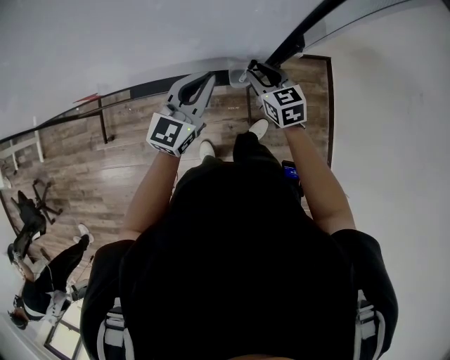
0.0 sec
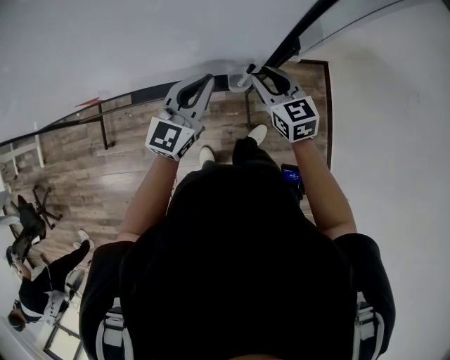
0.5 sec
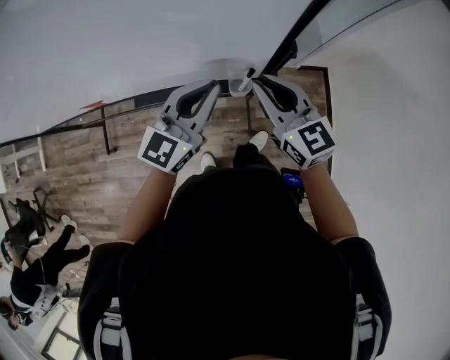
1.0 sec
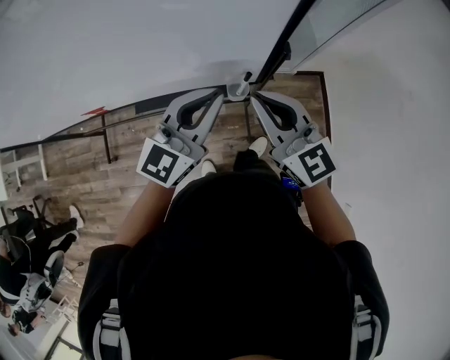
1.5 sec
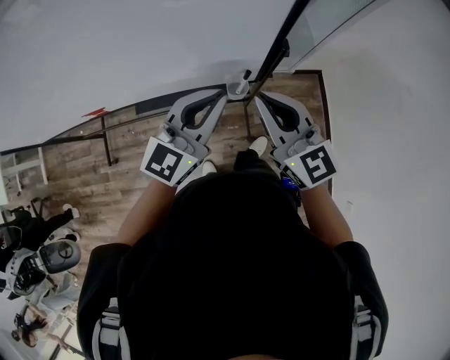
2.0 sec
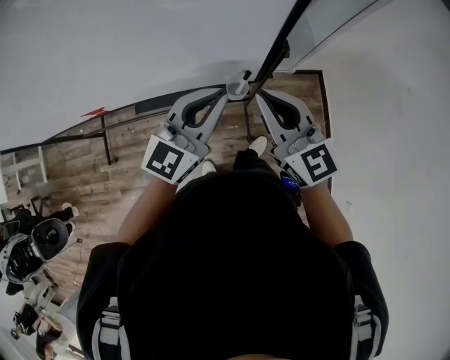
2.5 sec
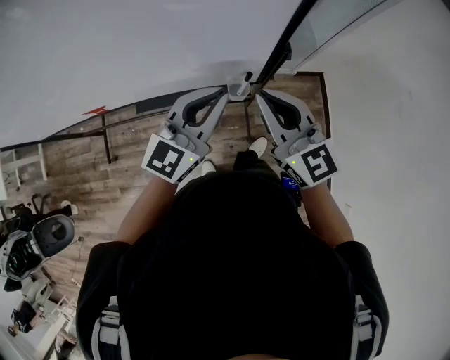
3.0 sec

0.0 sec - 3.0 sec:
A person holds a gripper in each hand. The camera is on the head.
0.0 sec - 1.5 sec: The right gripper travels upward and backward by some 25 cm, changes its angle by roughly 30 degrees, and closes up; the left gripper moves upward and backward, some 15 cm.
1.5 sec - 3.0 sec: The two grippers keep their place.

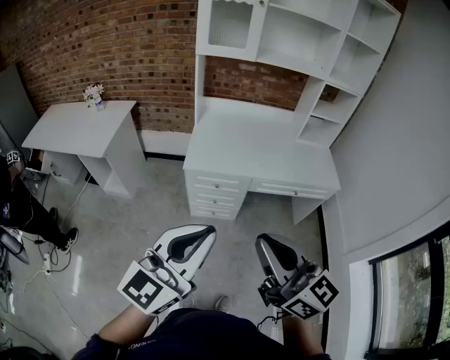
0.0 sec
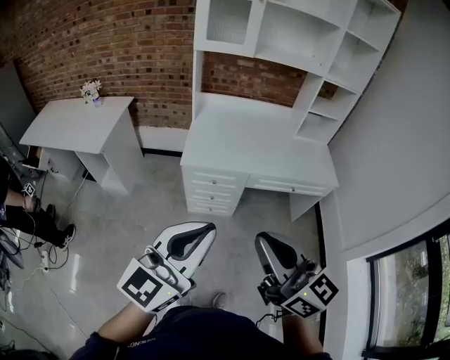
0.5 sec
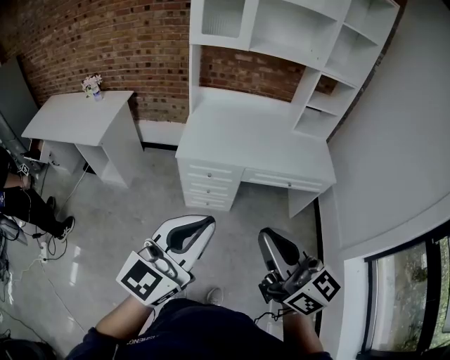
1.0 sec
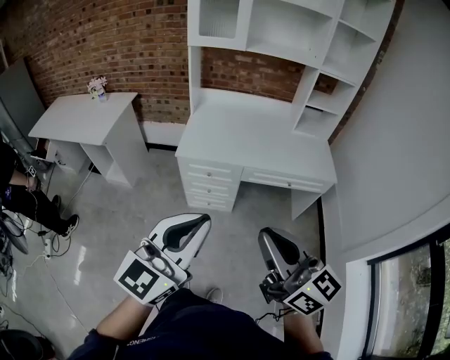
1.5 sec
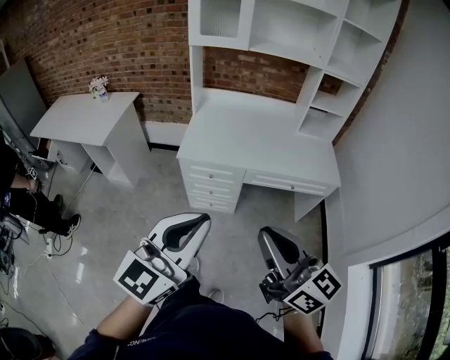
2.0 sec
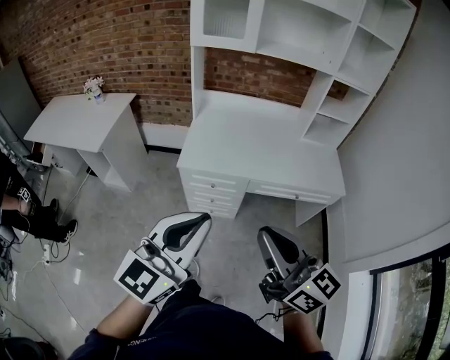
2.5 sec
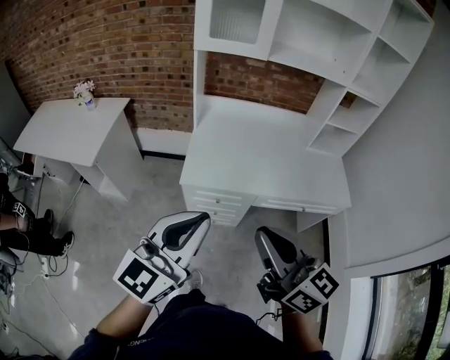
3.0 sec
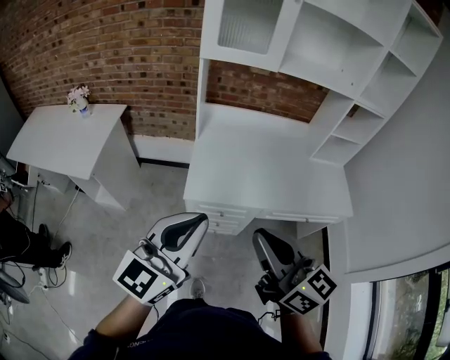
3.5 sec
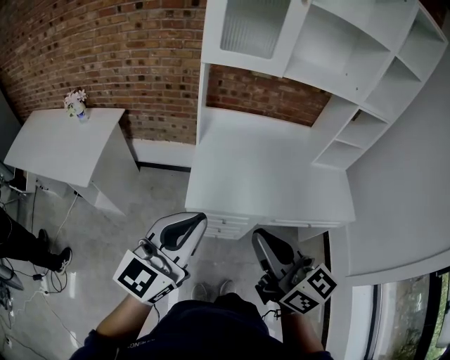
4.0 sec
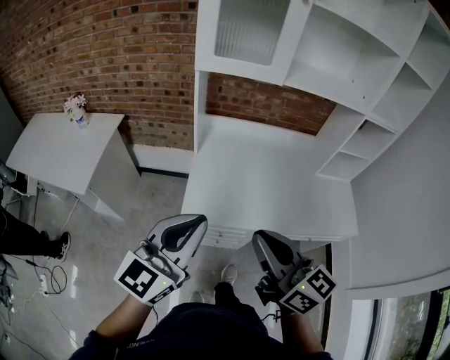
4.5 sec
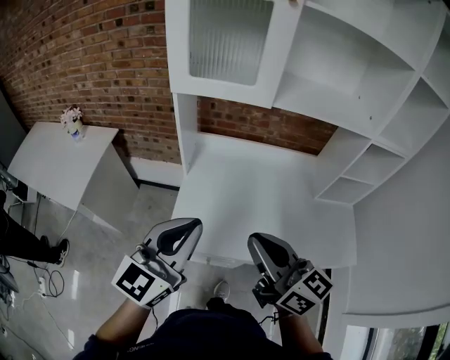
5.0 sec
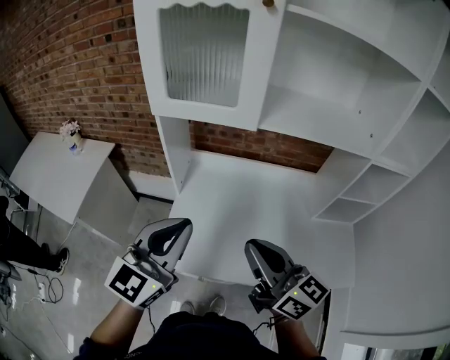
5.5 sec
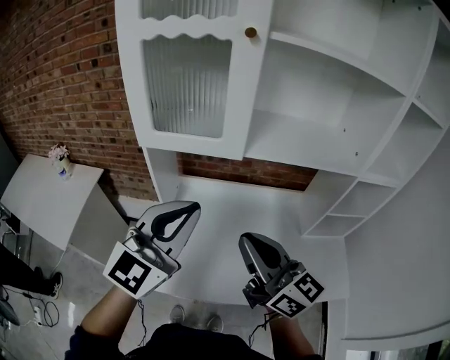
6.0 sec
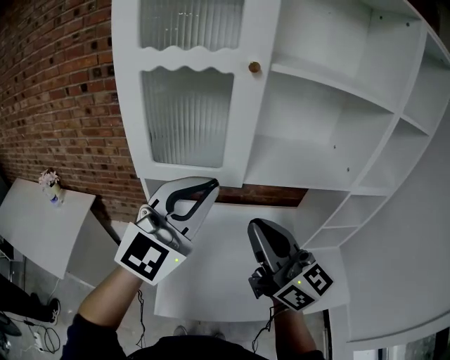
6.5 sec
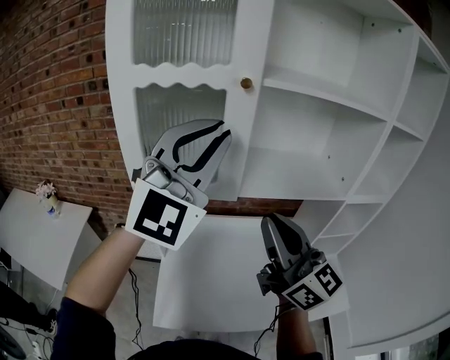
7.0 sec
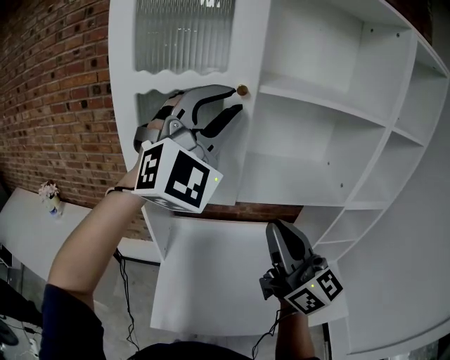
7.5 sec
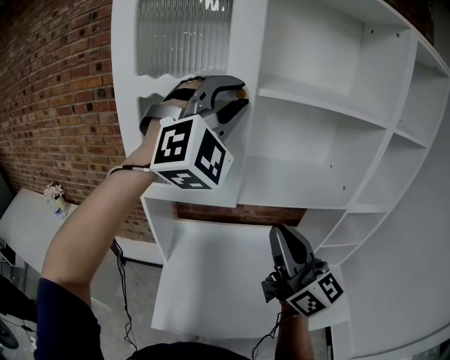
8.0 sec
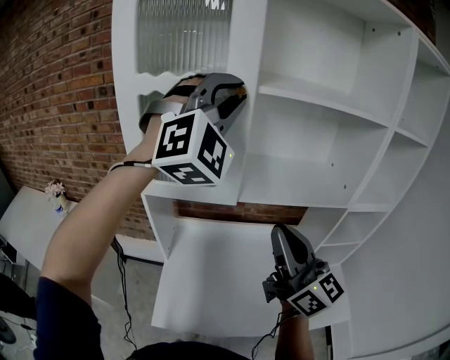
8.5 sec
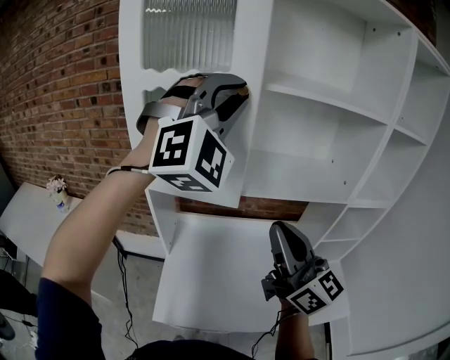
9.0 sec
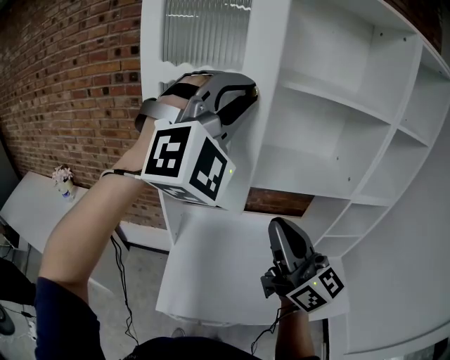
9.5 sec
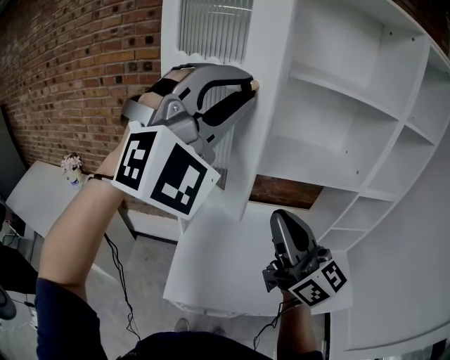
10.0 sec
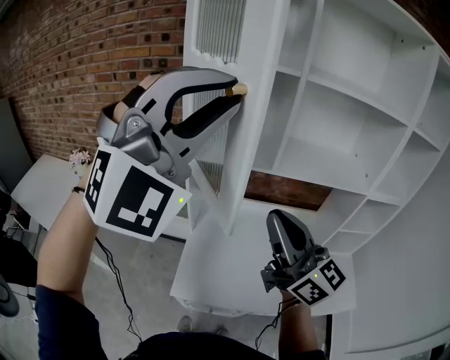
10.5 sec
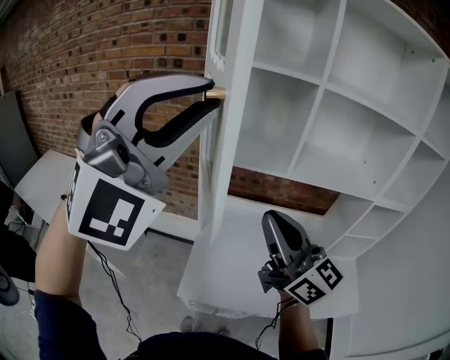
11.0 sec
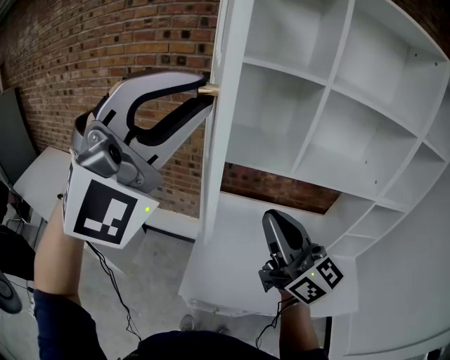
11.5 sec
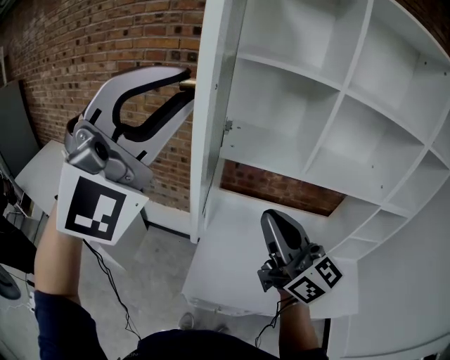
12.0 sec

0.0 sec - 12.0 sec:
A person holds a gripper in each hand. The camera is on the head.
0.0 sec - 2.0 sec: The two grippers go approximately 10 cm to the right.
2.0 sec - 4.0 sec: Both grippers move forward and to the left, about 35 cm.
4.0 sec - 6.0 sec: The two grippers go approximately 35 cm forward and to the right.
6.0 sec - 8.0 sec: The left gripper is displaced upward and forward by some 30 cm, rotates around the line of its fingers by about 60 degrees, clockwise from behind, and opens up; the right gripper is displaced upward, forward and to the right by roughly 15 cm.
8.0 sec - 10.0 sec: The left gripper travels backward and to the left by some 15 cm. Meanwhile the right gripper moves to the left and backward, some 10 cm.
10.0 sec - 12.0 sec: The left gripper moves to the left, some 20 cm; the right gripper shifts about 15 cm to the left.

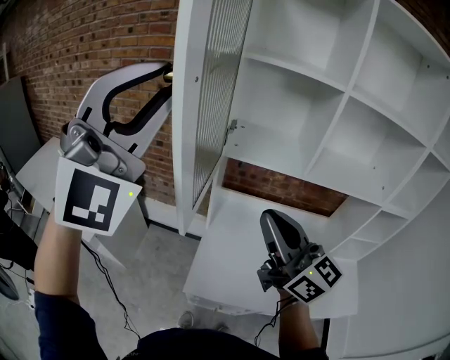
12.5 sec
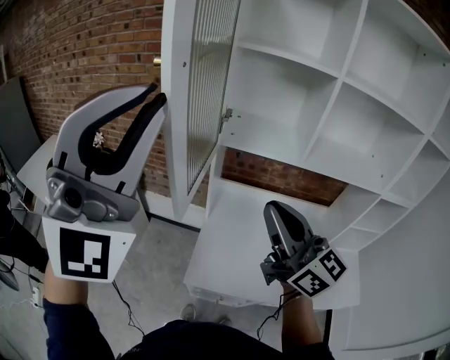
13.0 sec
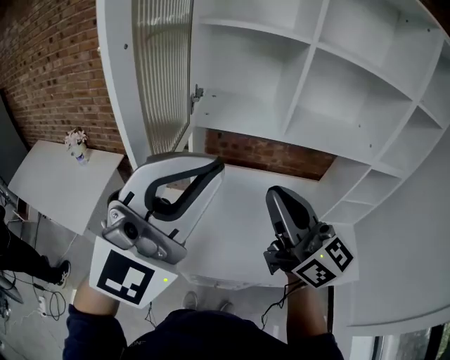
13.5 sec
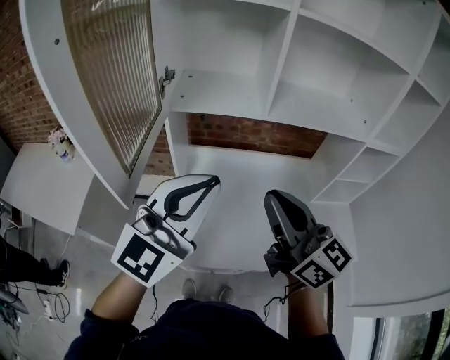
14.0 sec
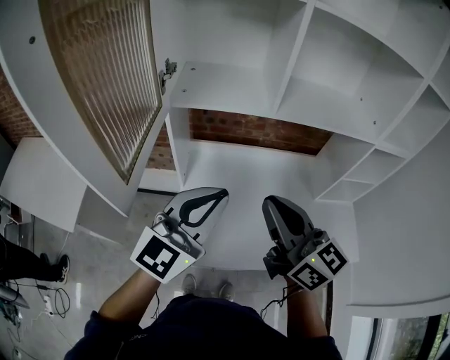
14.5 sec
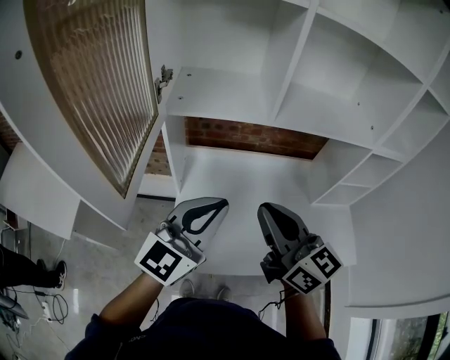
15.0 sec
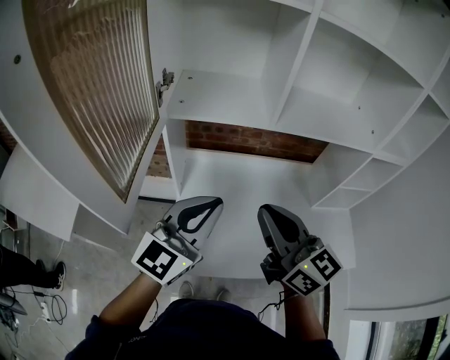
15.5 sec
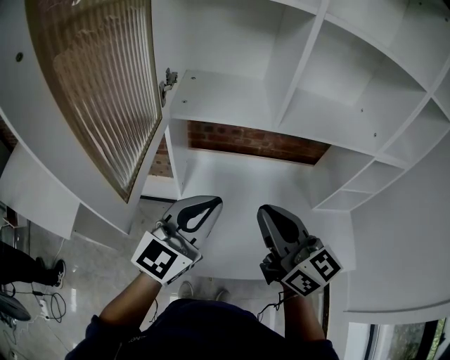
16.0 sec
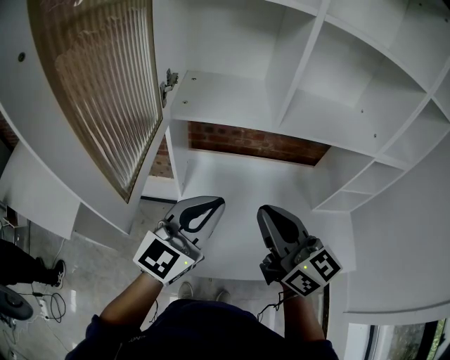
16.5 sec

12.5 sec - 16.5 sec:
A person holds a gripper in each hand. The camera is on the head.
12.5 sec - 14.5 sec: The right gripper goes about 15 cm to the right and downward. Meanwhile the left gripper is displaced downward and to the right by some 35 cm, and rolls counterclockwise, seen from behind, by some 70 degrees.
14.5 sec - 16.5 sec: The grippers move only a little.

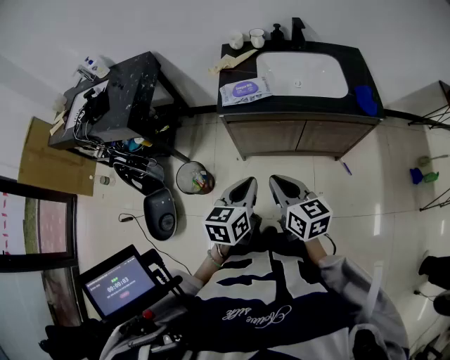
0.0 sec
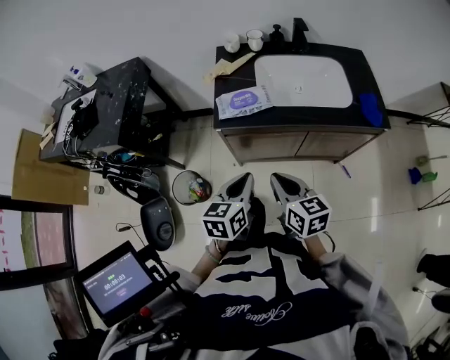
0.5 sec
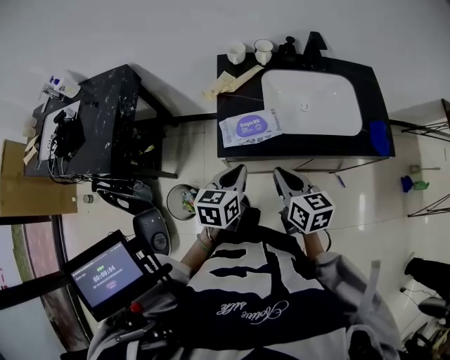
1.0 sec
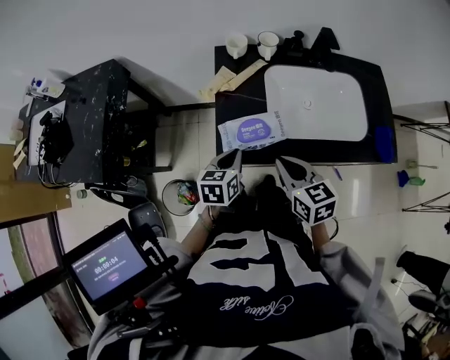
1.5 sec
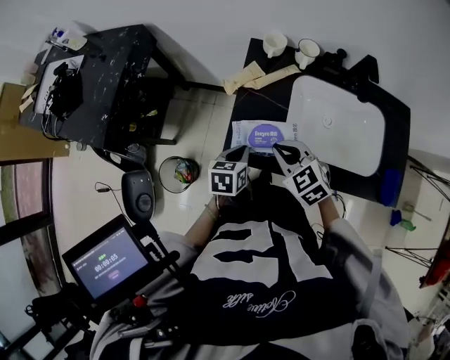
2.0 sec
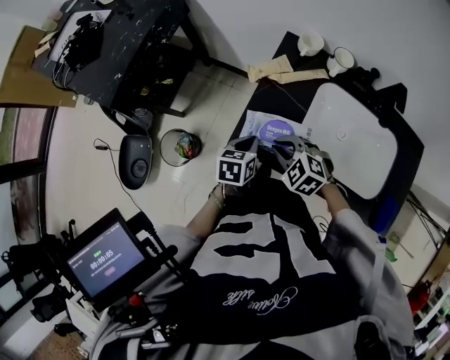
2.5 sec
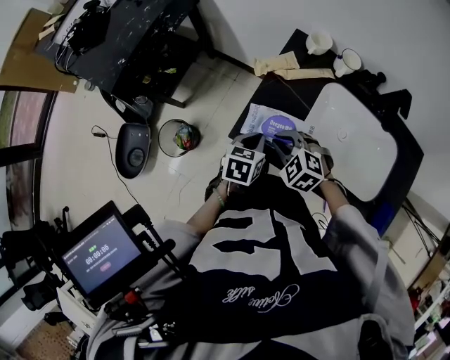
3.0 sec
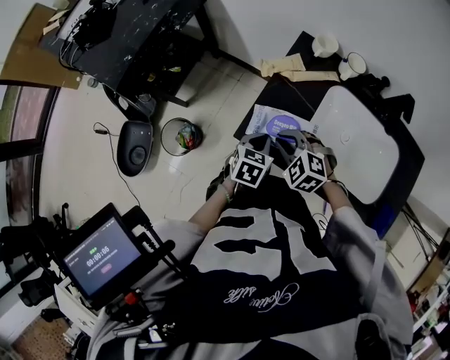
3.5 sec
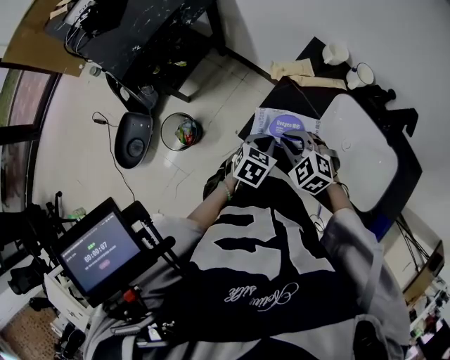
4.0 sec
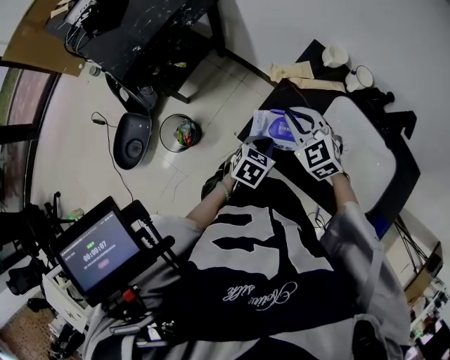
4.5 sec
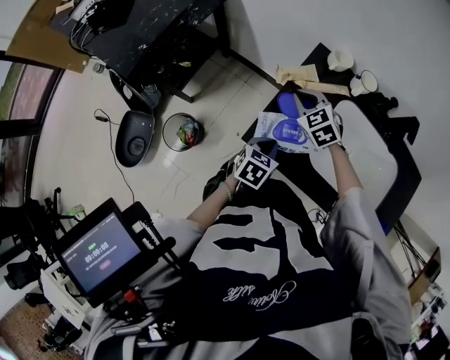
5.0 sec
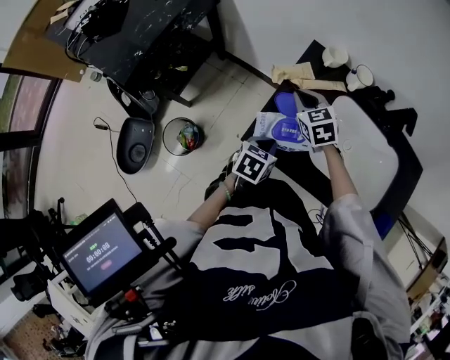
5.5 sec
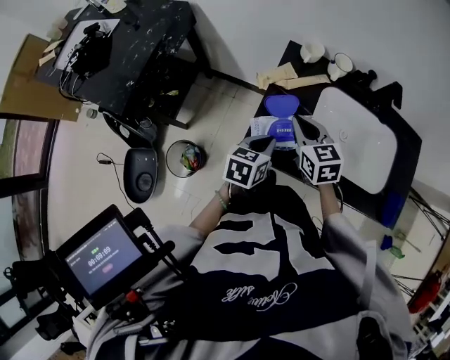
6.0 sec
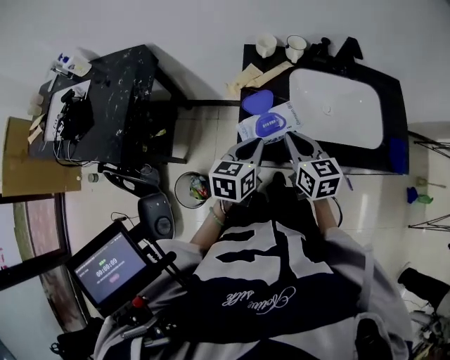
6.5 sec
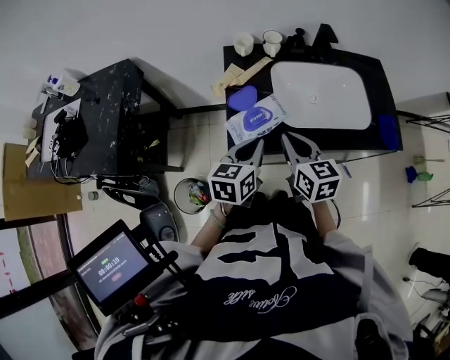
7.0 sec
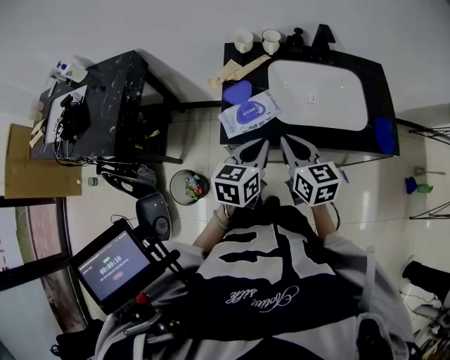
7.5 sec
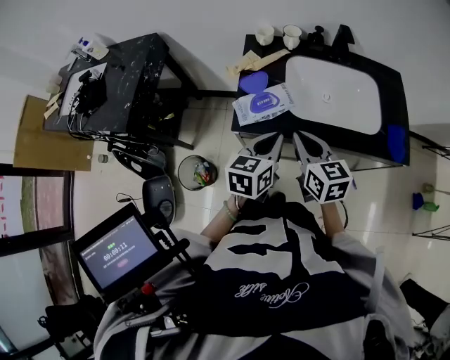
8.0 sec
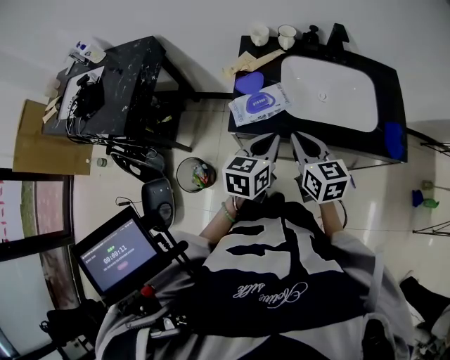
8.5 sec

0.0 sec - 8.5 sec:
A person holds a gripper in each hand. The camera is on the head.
0.0 sec - 2.0 sec: Both grippers are carried forward, roughly 40 cm. The right gripper rotates around the line of its fingers by approximately 40 degrees, counterclockwise from behind. The left gripper changes its angle by approximately 20 degrees.
2.0 sec - 4.0 sec: The right gripper travels downward by roughly 5 cm, and turns by roughly 40 degrees.
4.0 sec - 6.5 sec: The left gripper is displaced upward by roughly 15 cm, and turns by about 20 degrees. Meanwhile the right gripper goes up and down, about 10 cm each way, reversing 2 times, and rotates around the line of its fingers by roughly 70 degrees, clockwise from behind.
6.5 sec - 8.5 sec: The right gripper shifts approximately 10 cm backward and to the right. Meanwhile the left gripper travels to the right and backward by roughly 10 cm.
